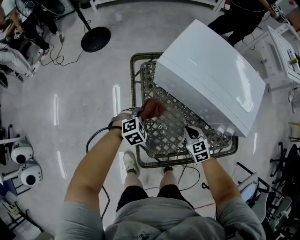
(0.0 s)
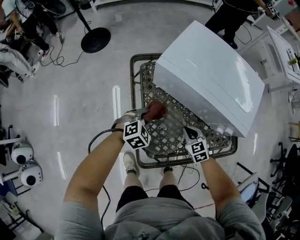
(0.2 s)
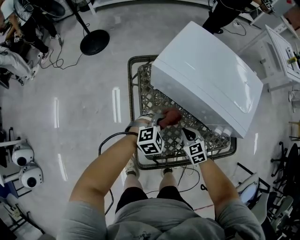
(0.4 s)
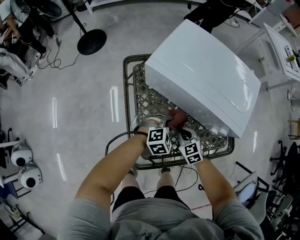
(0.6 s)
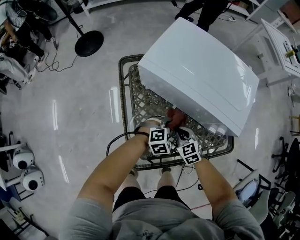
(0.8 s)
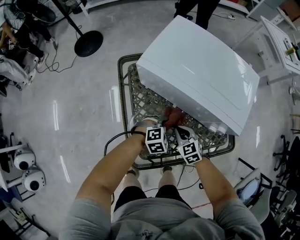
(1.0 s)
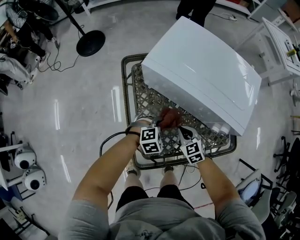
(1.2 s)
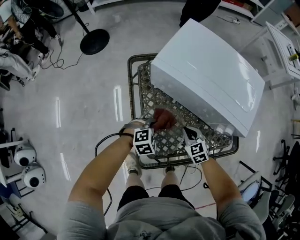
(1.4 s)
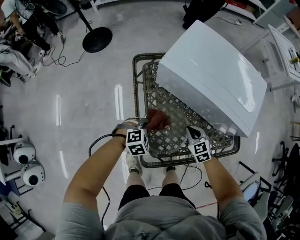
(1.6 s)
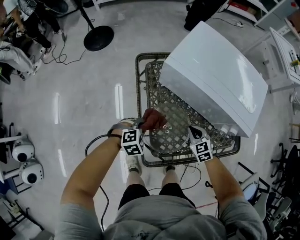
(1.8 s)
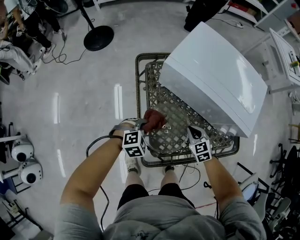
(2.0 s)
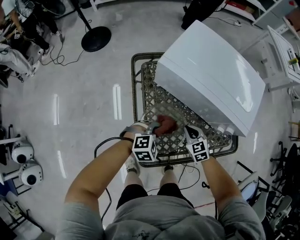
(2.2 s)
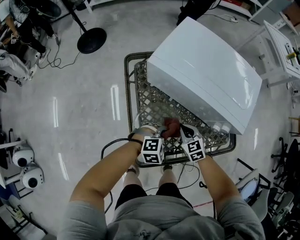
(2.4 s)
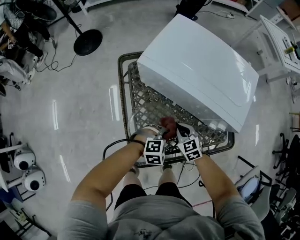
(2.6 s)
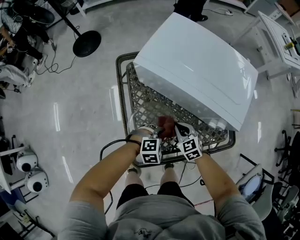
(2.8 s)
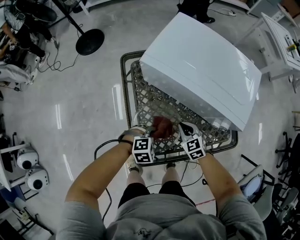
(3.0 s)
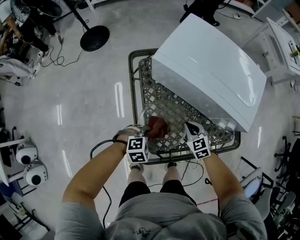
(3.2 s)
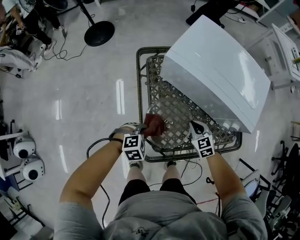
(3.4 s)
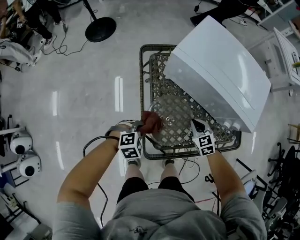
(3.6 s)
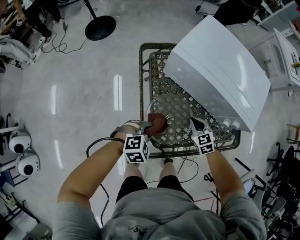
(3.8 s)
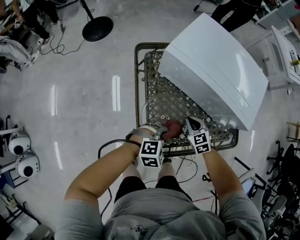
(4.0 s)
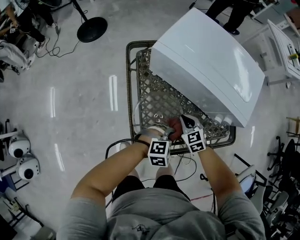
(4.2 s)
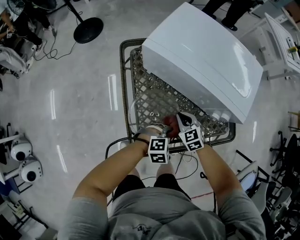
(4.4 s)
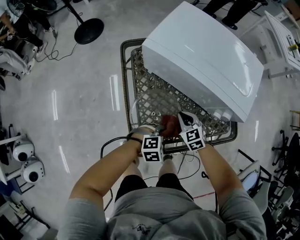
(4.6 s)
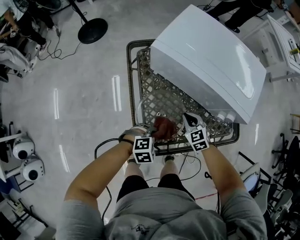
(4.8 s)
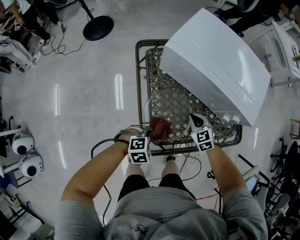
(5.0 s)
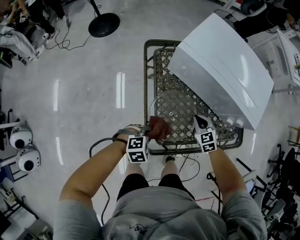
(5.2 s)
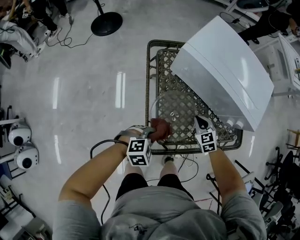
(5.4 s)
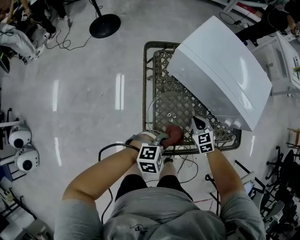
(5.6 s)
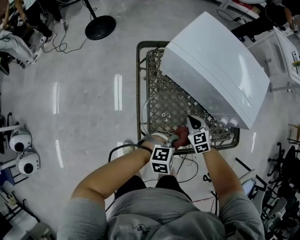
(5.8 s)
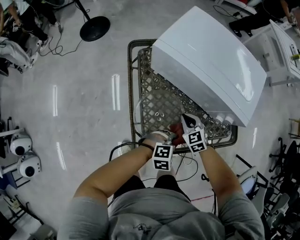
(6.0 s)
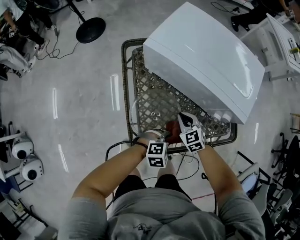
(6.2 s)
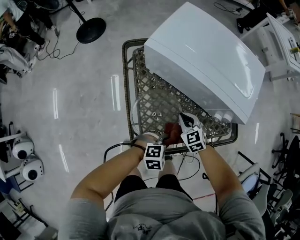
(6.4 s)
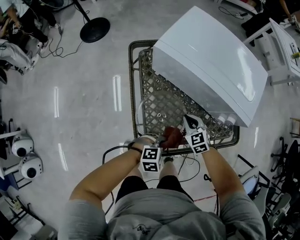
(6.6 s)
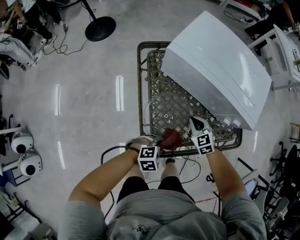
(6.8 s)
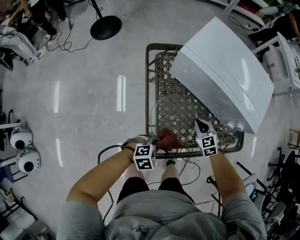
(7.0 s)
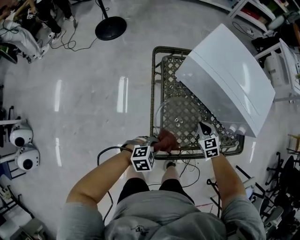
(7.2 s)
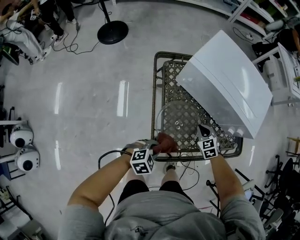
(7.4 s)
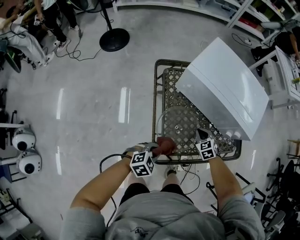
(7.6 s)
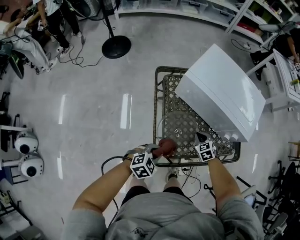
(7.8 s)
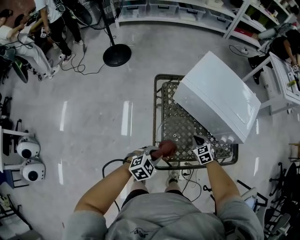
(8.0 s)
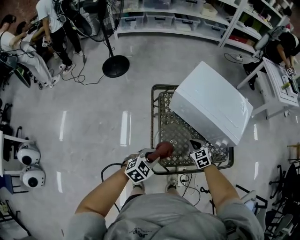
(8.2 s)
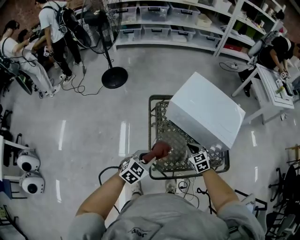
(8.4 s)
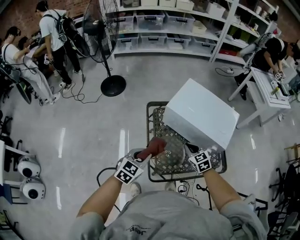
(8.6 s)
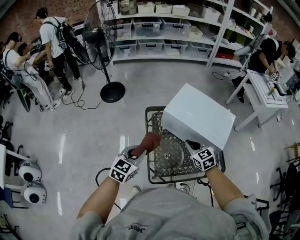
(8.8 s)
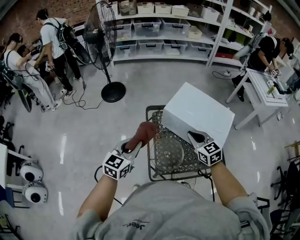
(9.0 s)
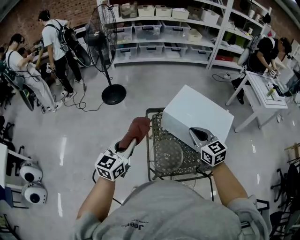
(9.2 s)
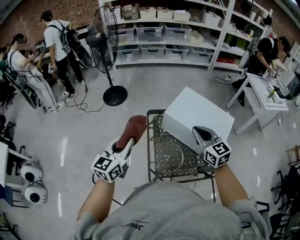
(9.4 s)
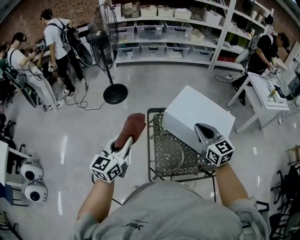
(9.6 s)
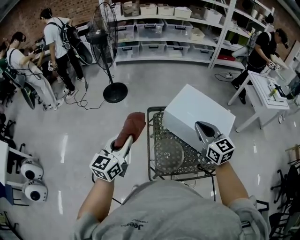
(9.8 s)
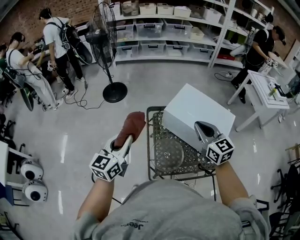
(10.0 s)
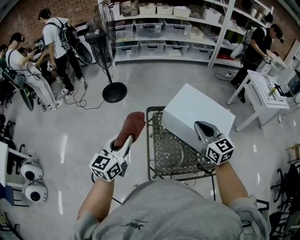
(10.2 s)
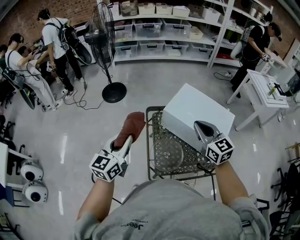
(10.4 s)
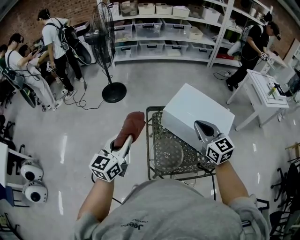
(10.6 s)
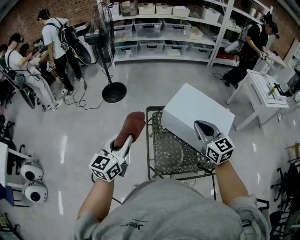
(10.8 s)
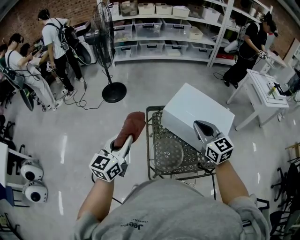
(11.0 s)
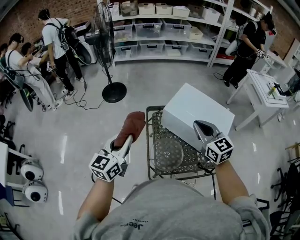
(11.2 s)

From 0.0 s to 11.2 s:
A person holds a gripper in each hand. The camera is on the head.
From 0.0 s to 1.6 s: The left gripper is displaced backward by approximately 5 cm, and goes to the right and returns, some 20 cm each way.
From 1.6 s to 3.2 s: The left gripper travels to the right and back again, roughly 15 cm each way.
From 3.2 s to 4.8 s: The left gripper swings left and right, some 20 cm each way, with 2 reversals.
From 4.8 s to 6.4 s: The left gripper travels to the right by some 10 cm.
From 6.4 s to 8.0 s: The left gripper goes some 20 cm to the left and upward, and swivels approximately 30 degrees.
From 8.0 s to 9.6 s: The left gripper is displaced upward and to the left by approximately 35 cm, and angles its fingers upward, by roughly 40 degrees, while the right gripper shifts approximately 40 cm upward, and points its fingers roughly 40 degrees further upward.
From 9.6 s to 11.2 s: Neither gripper changes place.

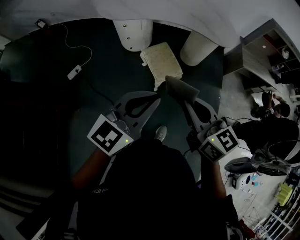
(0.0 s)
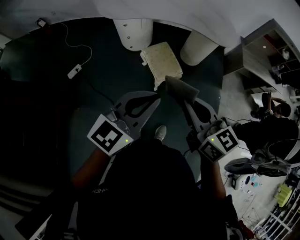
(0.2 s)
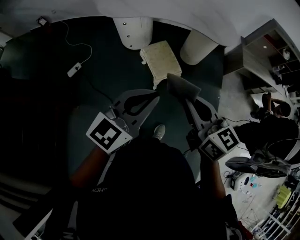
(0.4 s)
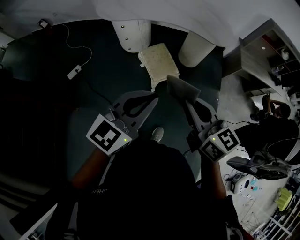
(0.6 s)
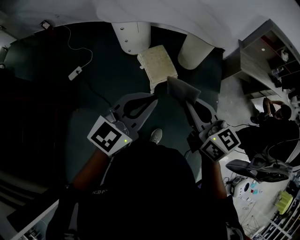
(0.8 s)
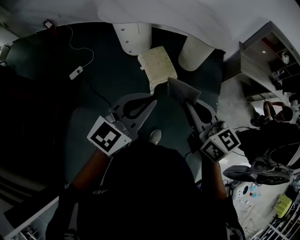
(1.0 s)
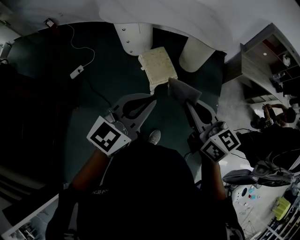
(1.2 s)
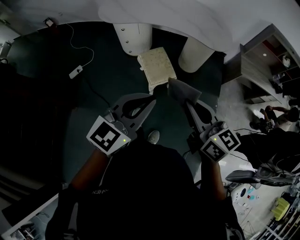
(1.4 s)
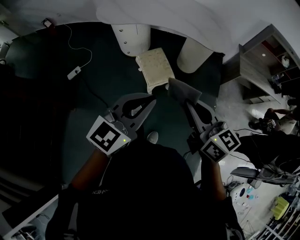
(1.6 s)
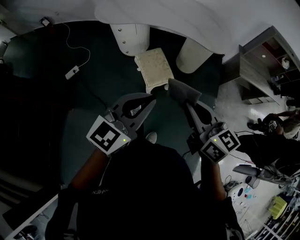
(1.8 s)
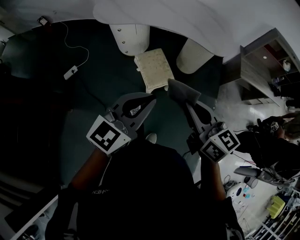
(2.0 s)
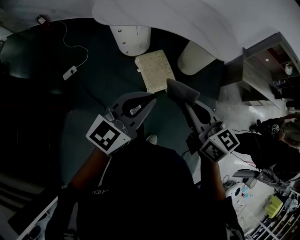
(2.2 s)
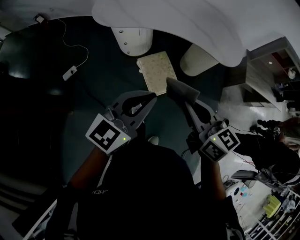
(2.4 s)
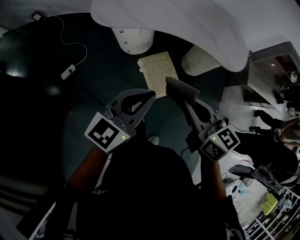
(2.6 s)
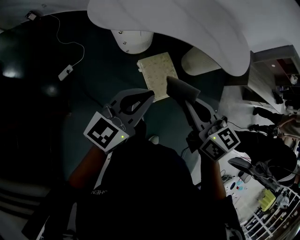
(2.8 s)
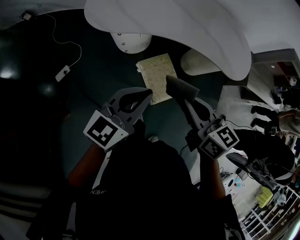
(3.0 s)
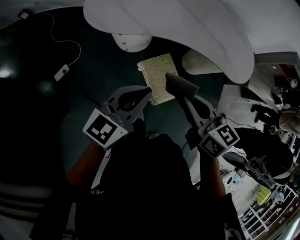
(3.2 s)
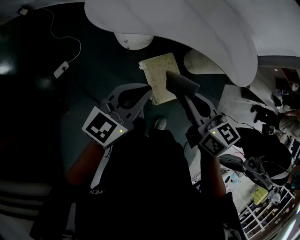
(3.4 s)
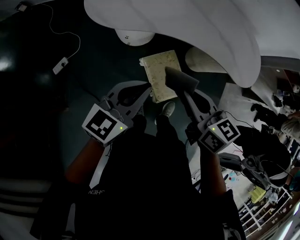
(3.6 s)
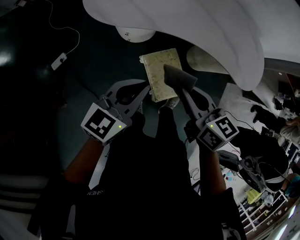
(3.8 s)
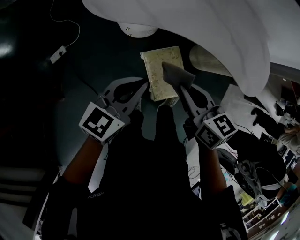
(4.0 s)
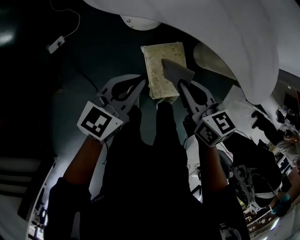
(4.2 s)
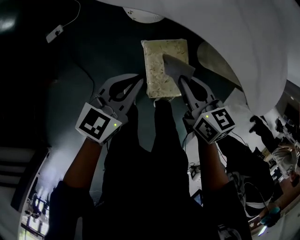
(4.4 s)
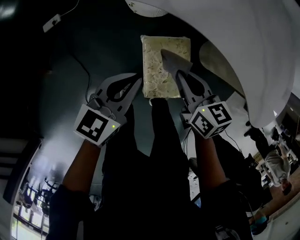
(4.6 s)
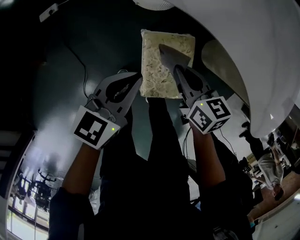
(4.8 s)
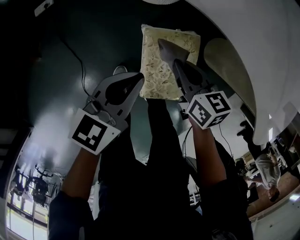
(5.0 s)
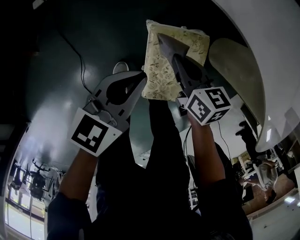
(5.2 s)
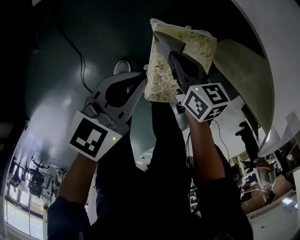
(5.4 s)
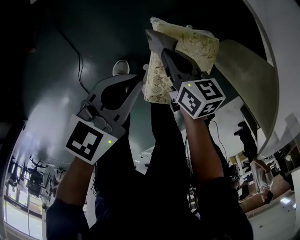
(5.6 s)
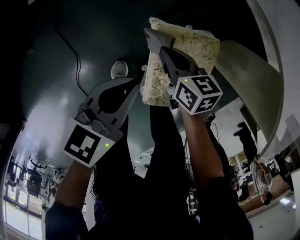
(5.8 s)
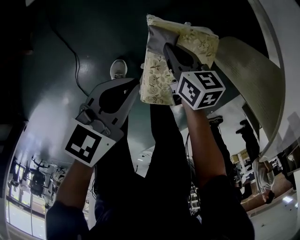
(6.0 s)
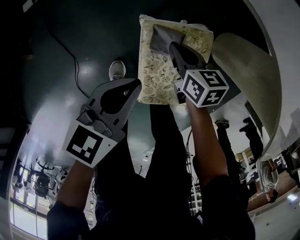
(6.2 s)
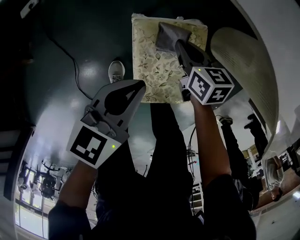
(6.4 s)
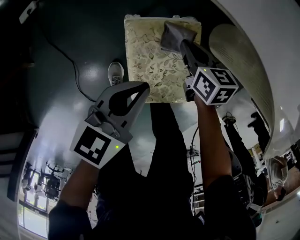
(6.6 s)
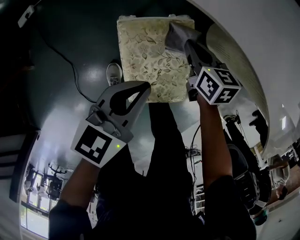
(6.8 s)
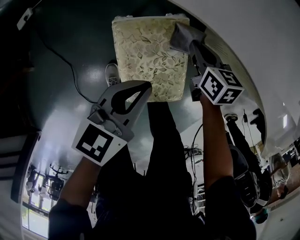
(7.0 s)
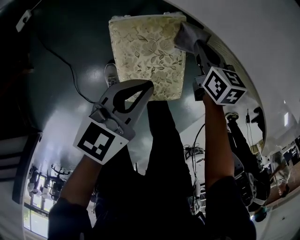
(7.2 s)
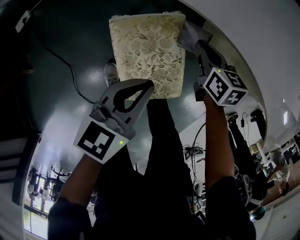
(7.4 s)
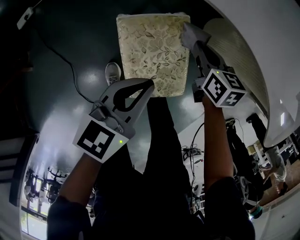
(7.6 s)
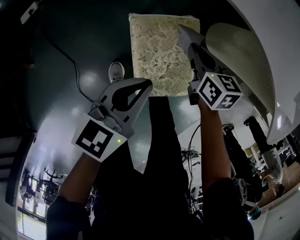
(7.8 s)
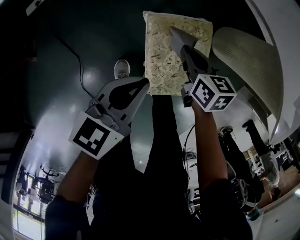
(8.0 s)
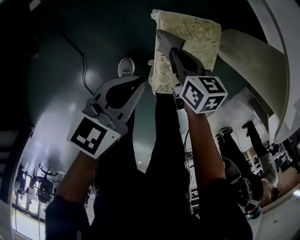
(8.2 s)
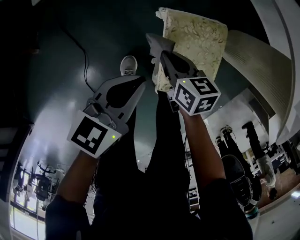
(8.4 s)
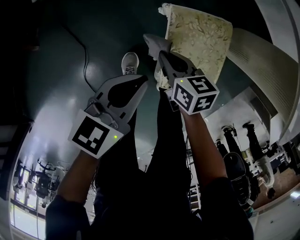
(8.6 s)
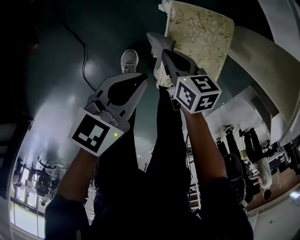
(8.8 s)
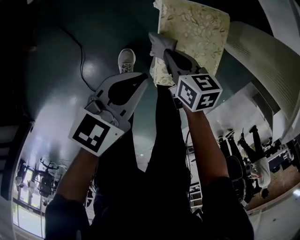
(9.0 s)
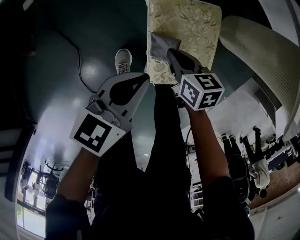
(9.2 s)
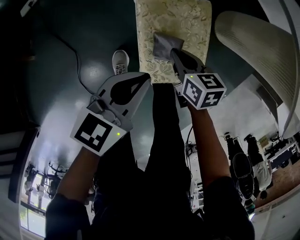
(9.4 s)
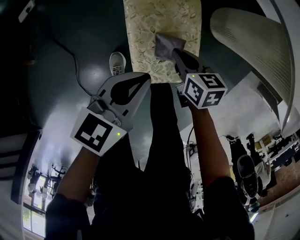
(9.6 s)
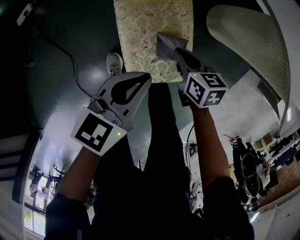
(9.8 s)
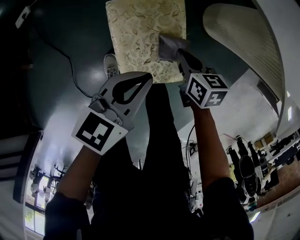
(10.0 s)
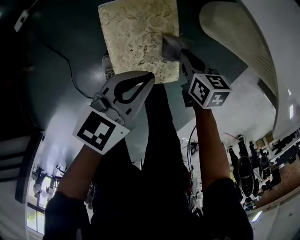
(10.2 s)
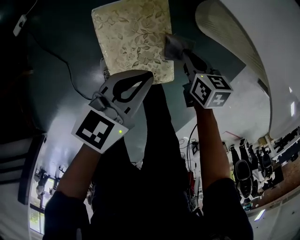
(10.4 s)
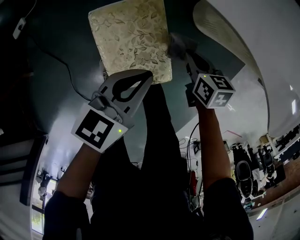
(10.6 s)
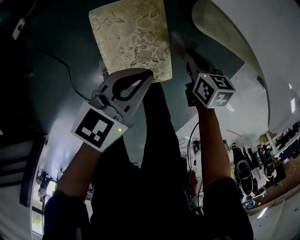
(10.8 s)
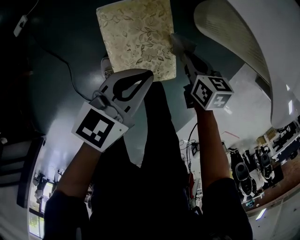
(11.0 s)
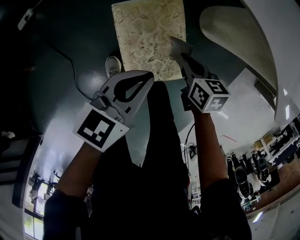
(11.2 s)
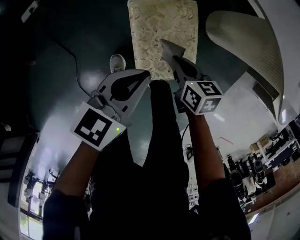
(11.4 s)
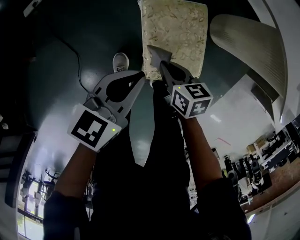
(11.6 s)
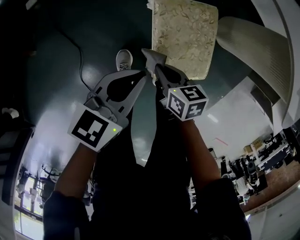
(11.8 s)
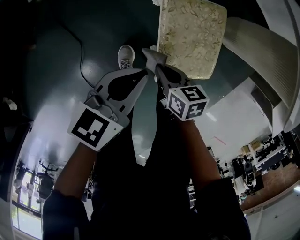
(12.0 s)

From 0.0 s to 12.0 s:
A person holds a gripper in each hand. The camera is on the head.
From 0.0 s to 1.6 s: The grippers both shift to the right by about 10 cm.
From 1.6 s to 3.0 s: The two grippers go some 35 cm forward and to the left.
From 3.0 s to 4.4 s: The two grippers go some 25 cm downward and forward. The left gripper changes its angle by roughly 20 degrees.
From 4.4 s to 6.0 s: The two grippers go roughly 30 cm downward. The left gripper changes its angle by roughly 20 degrees.
From 6.0 s to 7.6 s: The right gripper shifts about 15 cm to the right, while the left gripper shifts approximately 10 cm to the right.
From 7.6 s to 9.0 s: The left gripper is displaced to the left and backward by some 10 cm. The right gripper goes roughly 20 cm to the left and backward.
From 9.0 s to 10.4 s: The grippers both shift to the right by about 25 cm.
From 10.4 s to 12.0 s: The right gripper is displaced to the left and backward by approximately 30 cm. Meanwhile the left gripper travels to the left by about 20 cm.

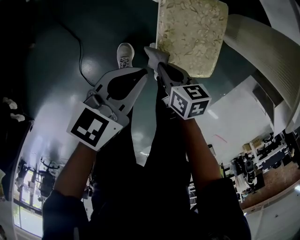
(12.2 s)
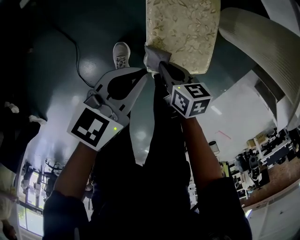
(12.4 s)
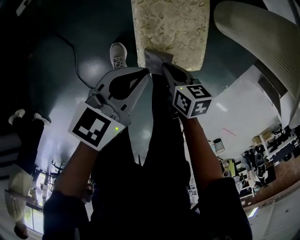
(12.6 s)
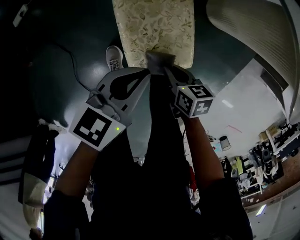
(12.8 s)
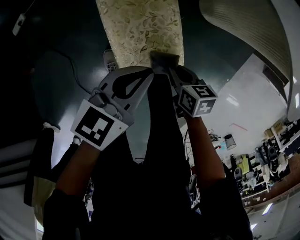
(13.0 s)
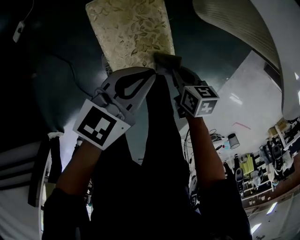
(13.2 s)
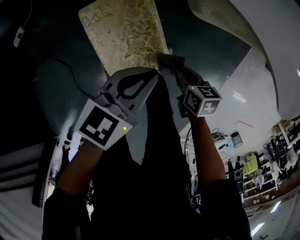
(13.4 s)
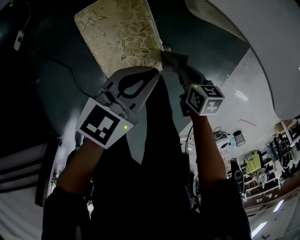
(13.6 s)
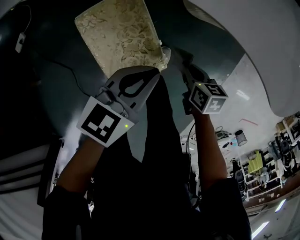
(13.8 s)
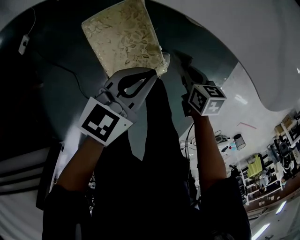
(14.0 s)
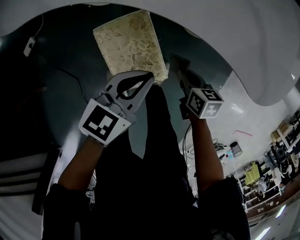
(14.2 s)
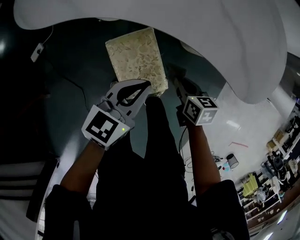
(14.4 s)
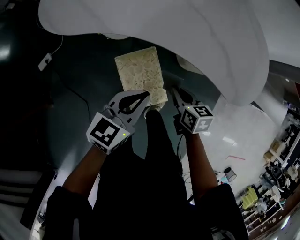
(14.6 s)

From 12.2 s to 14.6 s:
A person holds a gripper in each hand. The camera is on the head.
From 12.2 s to 13.4 s: Both grippers travel together to the right, approximately 25 cm. The right gripper swivels about 20 degrees.
From 13.4 s to 14.6 s: Both grippers travel together upward, roughly 25 cm.
